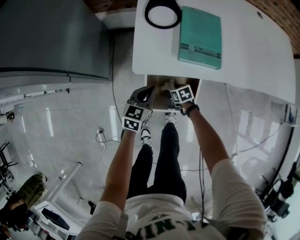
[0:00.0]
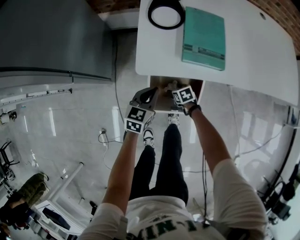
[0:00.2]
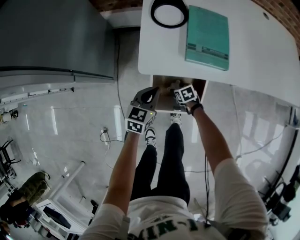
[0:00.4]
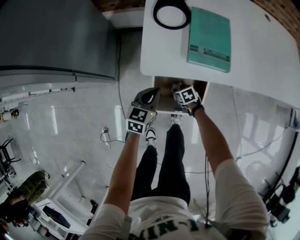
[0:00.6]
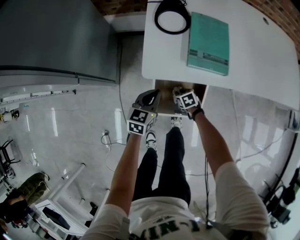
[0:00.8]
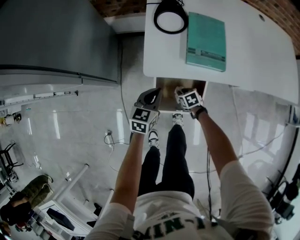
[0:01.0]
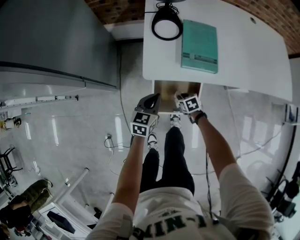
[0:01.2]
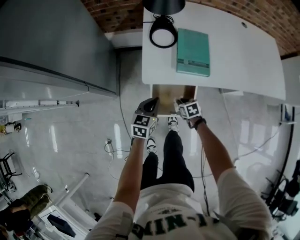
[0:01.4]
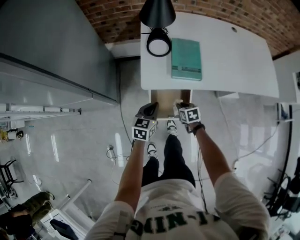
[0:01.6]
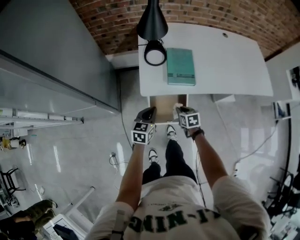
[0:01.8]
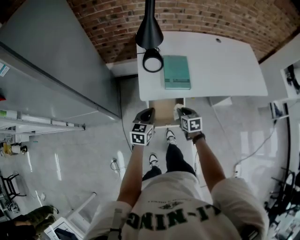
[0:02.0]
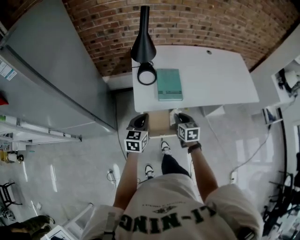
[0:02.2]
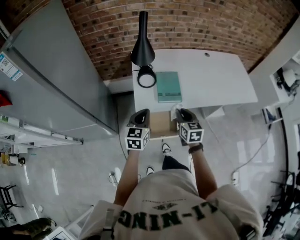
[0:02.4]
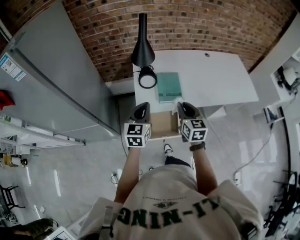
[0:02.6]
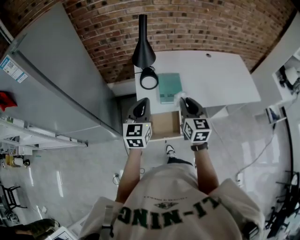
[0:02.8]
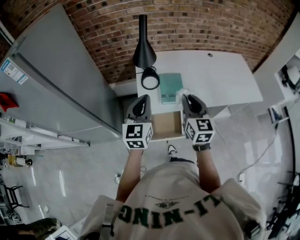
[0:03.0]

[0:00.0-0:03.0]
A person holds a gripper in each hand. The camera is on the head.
0:00.0 to 0:01.6: The left gripper travels upward by about 10 cm. Meanwhile the right gripper is displaced upward by roughly 20 cm, and closes.
0:01.6 to 0:03.0: Both grippers travel together upward, approximately 40 cm. The left gripper turns by approximately 30 degrees, while the right gripper tips its fingers upward by approximately 50 degrees.

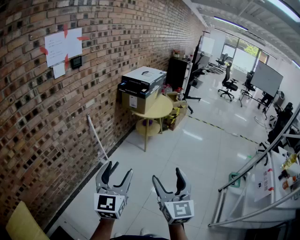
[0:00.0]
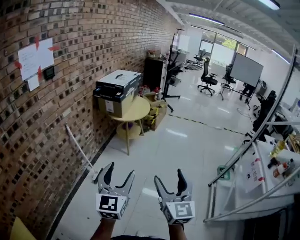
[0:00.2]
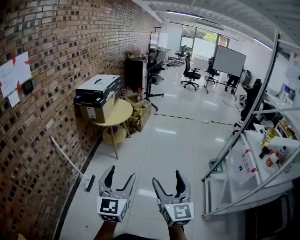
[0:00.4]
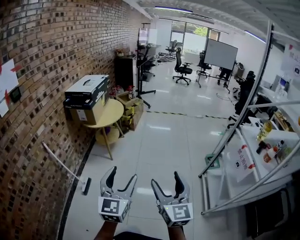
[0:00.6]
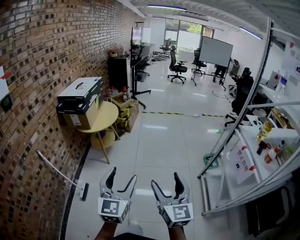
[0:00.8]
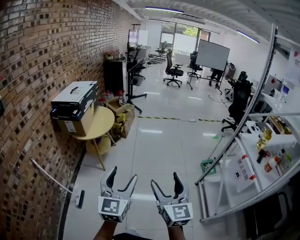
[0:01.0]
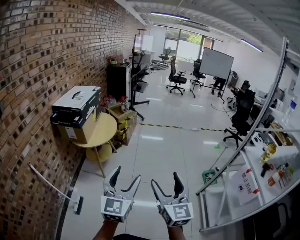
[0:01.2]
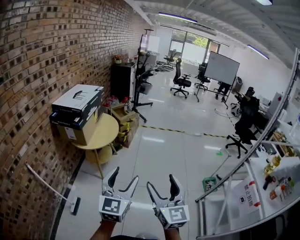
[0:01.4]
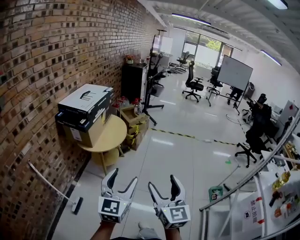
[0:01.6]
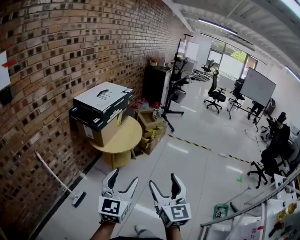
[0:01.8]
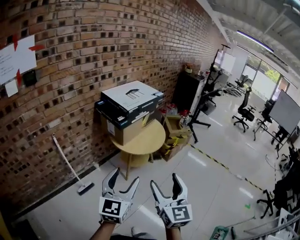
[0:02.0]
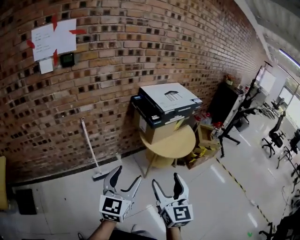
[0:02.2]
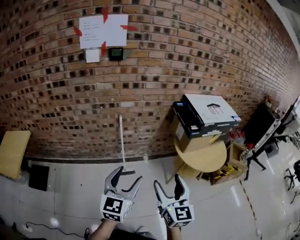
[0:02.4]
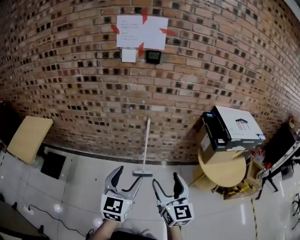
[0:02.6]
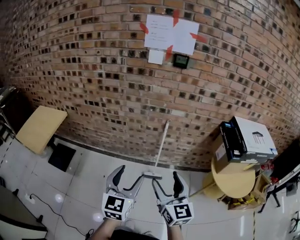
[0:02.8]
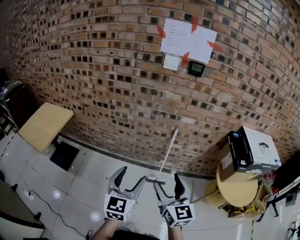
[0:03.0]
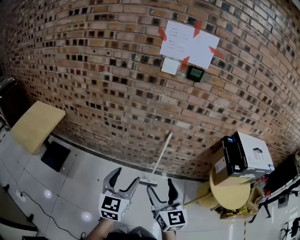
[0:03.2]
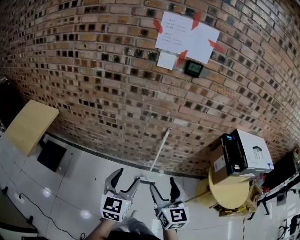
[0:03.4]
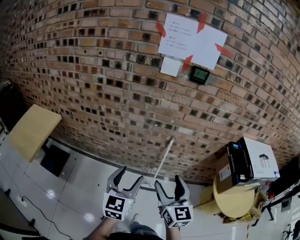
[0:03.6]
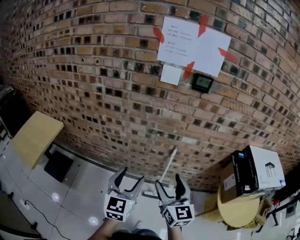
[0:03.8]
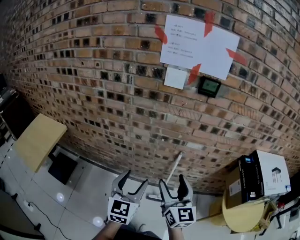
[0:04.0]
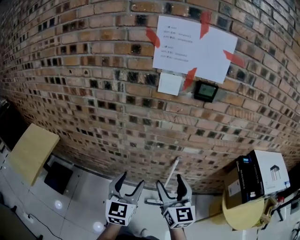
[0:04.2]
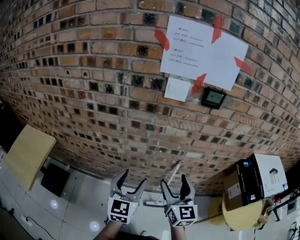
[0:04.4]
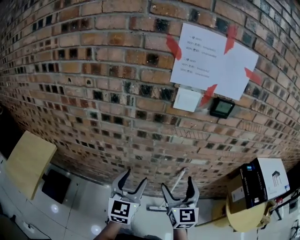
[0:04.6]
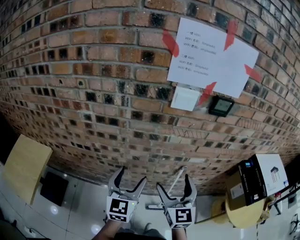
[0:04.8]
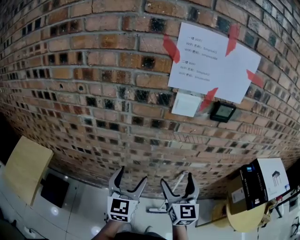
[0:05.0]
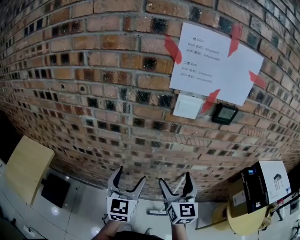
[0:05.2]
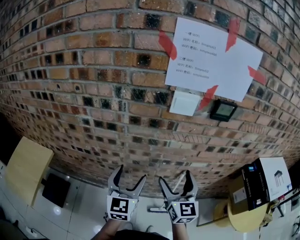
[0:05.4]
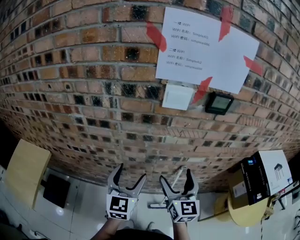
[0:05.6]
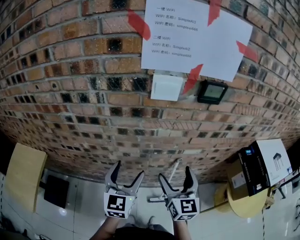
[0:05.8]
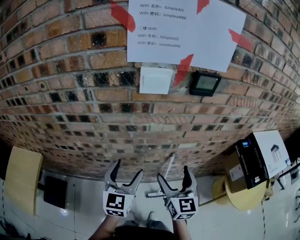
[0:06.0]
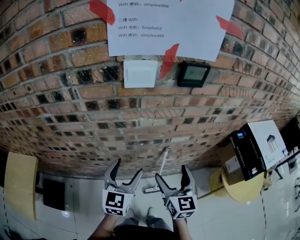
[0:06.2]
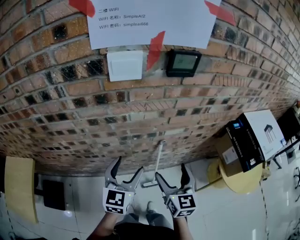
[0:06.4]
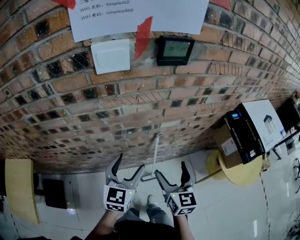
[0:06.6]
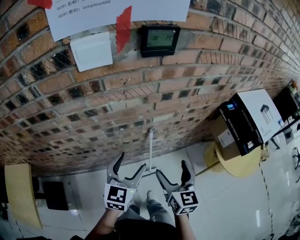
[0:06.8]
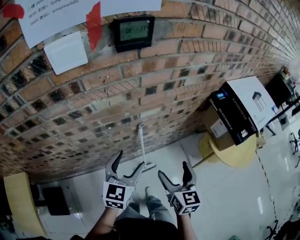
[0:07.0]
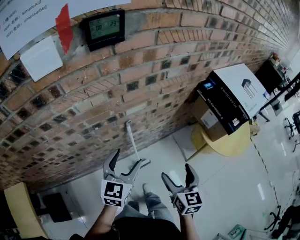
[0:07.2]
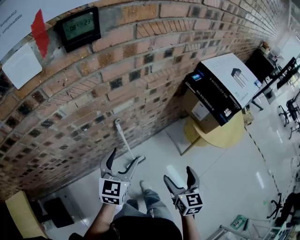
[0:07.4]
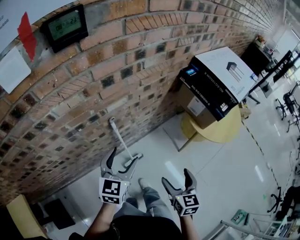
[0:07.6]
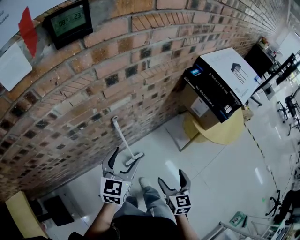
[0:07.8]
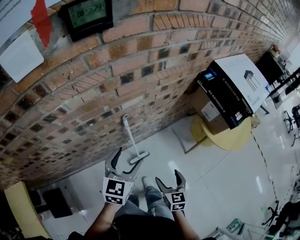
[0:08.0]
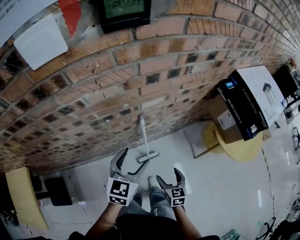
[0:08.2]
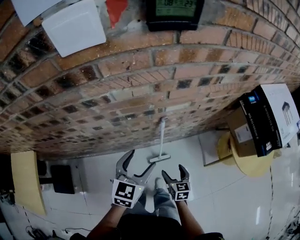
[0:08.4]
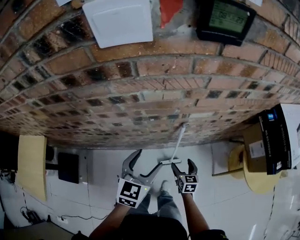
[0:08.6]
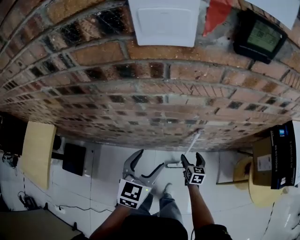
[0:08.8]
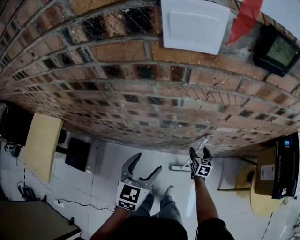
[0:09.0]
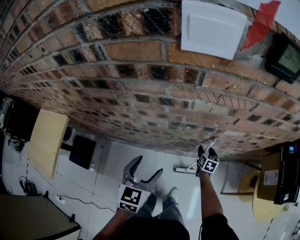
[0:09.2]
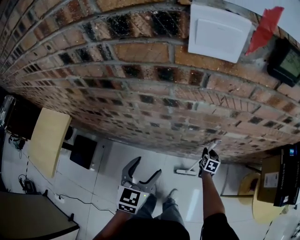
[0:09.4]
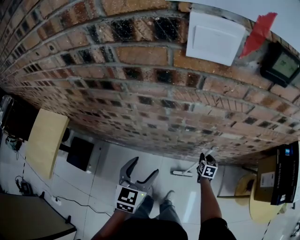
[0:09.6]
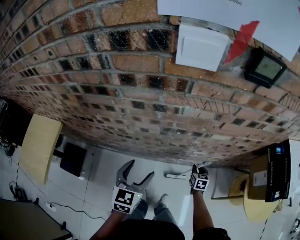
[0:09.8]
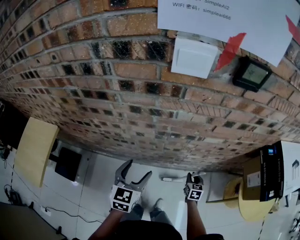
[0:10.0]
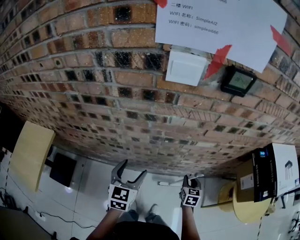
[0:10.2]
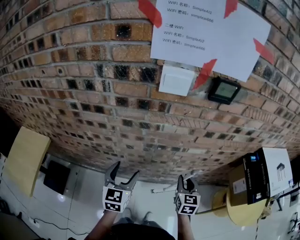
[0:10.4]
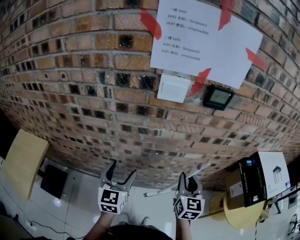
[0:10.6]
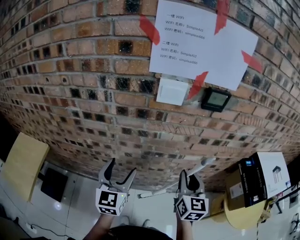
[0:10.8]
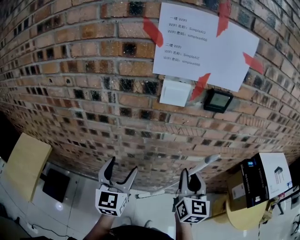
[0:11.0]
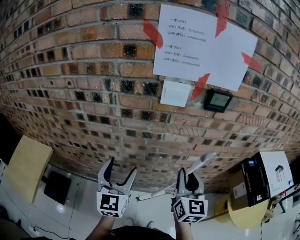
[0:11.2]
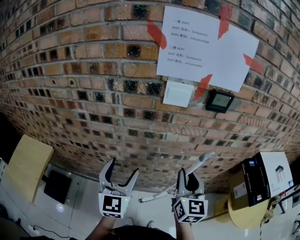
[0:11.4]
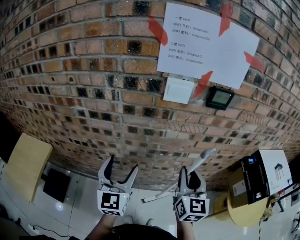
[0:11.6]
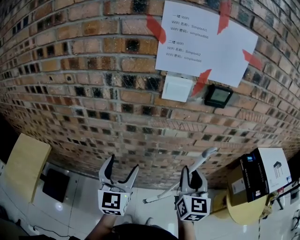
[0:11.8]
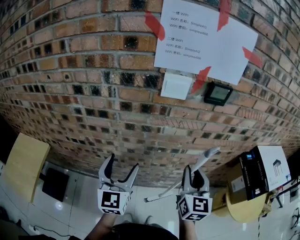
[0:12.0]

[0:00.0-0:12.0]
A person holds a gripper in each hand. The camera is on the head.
0:00.0 to 0:01.6: The two grippers travel together, forward and to the right, about 50 cm.
0:01.6 to 0:03.0: Both grippers are carried roughly 40 cm. The left gripper changes its angle by about 80 degrees; the right gripper changes its angle by some 90 degrees.
0:03.0 to 0:04.4: The two grippers go some 35 cm forward.
0:04.4 to 0:06.0: The grippers both shift forward by about 10 cm.
0:06.0 to 0:07.6: The left gripper changes place by some 25 cm, and swivels approximately 40 degrees. Meanwhile the right gripper shifts by about 35 cm, and swivels approximately 40 degrees.
0:07.6 to 0:09.0: The left gripper ends up approximately 25 cm from where it was, and changes its angle by some 40 degrees. Meanwhile the right gripper changes place by some 40 cm, and turns by approximately 30 degrees.
0:09.0 to 0:10.4: The right gripper is displaced upward and backward by about 30 cm, and closes up. The left gripper is displaced upward by some 5 cm.
0:10.4 to 0:12.0: The right gripper goes about 20 cm upward. Meanwhile the left gripper heads upward, covering approximately 15 cm.

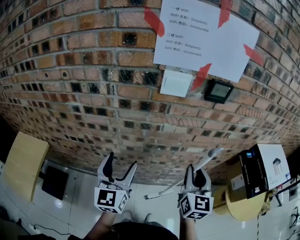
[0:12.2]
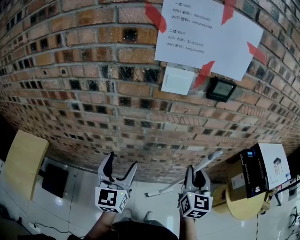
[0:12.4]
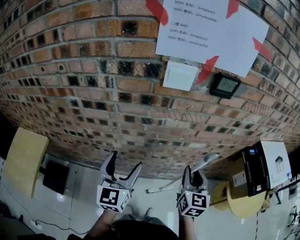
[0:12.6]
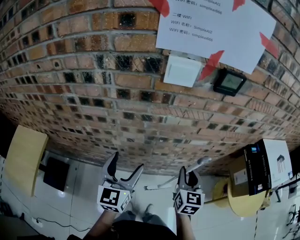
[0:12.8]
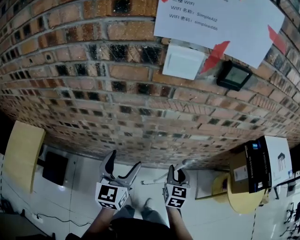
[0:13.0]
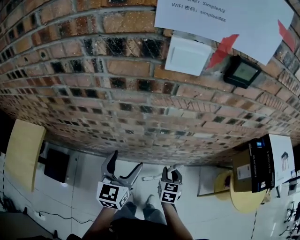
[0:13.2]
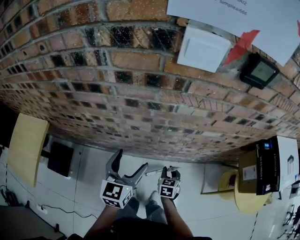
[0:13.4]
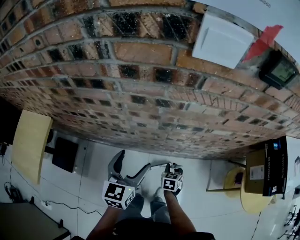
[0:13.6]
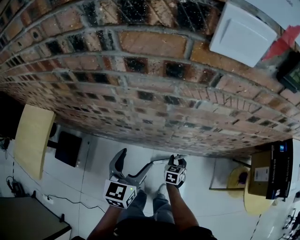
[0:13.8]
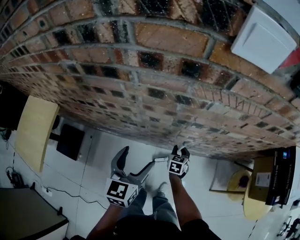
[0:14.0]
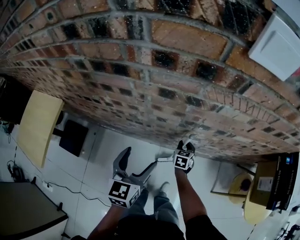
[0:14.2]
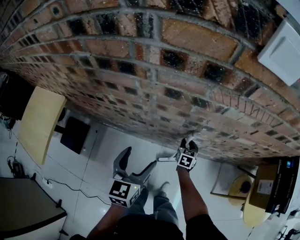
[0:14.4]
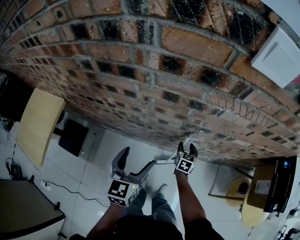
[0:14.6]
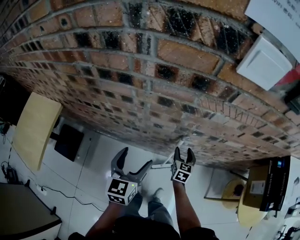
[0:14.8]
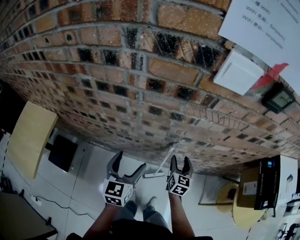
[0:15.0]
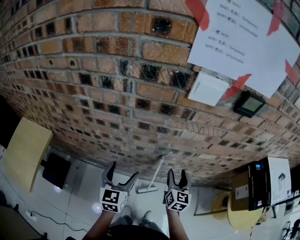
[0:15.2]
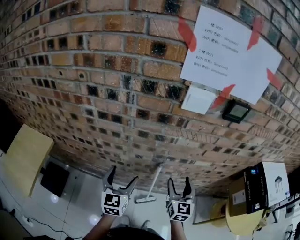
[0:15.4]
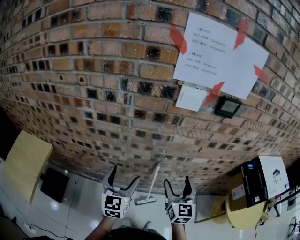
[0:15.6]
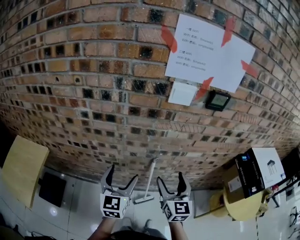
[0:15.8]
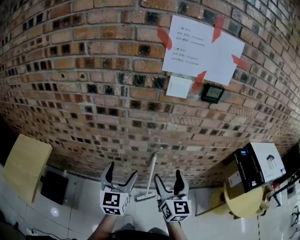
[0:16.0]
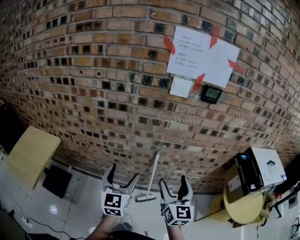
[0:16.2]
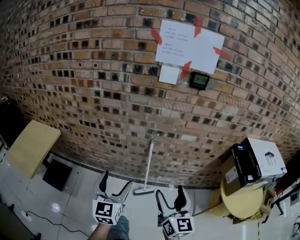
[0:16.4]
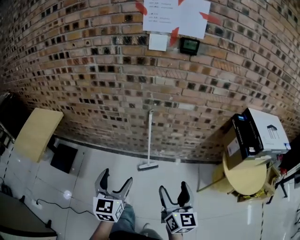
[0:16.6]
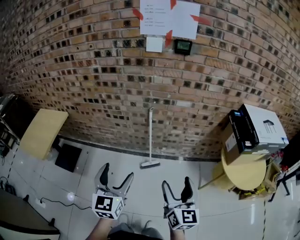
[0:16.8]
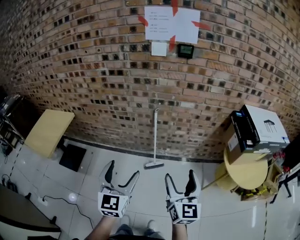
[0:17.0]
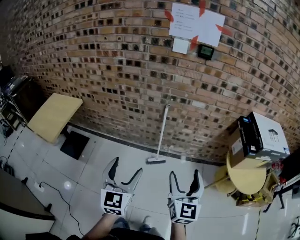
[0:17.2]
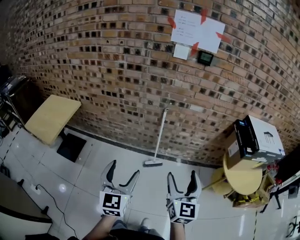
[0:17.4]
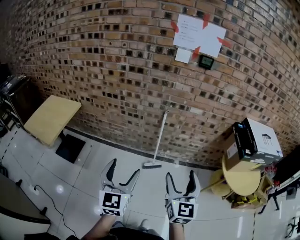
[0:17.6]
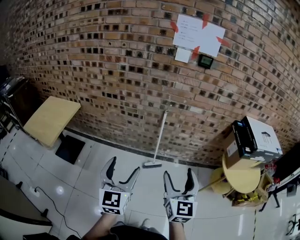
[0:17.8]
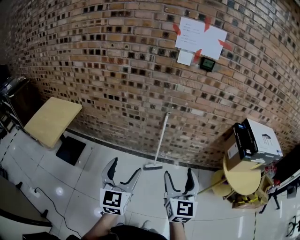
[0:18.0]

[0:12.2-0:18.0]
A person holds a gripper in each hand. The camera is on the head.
0:12.2 to 0:13.6: The right gripper moves downward, about 40 cm, and tips its fingers downward by approximately 50 degrees. Meanwhile the left gripper shifts roughly 15 cm downward, and changes its angle by about 20 degrees.
0:13.6 to 0:15.0: The left gripper goes some 5 cm to the left; the right gripper shifts approximately 15 cm upward and forward, and changes its angle by roughly 30 degrees.
0:15.0 to 0:16.6: The grippers both shift backward by some 40 cm. The right gripper swivels about 20 degrees.
0:16.6 to 0:18.0: The right gripper goes about 15 cm upward, to the left and backward. The left gripper is displaced backward, upward and to the left by about 15 cm.

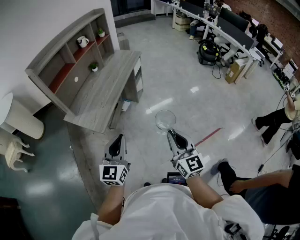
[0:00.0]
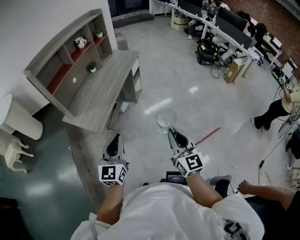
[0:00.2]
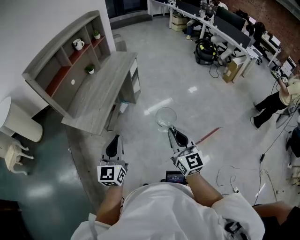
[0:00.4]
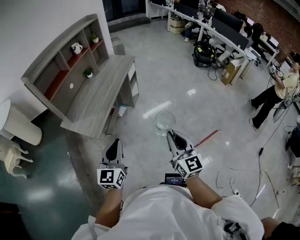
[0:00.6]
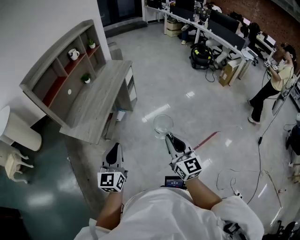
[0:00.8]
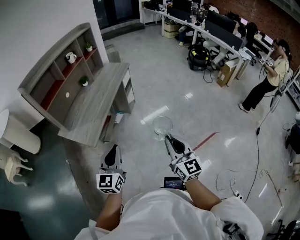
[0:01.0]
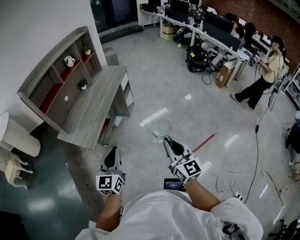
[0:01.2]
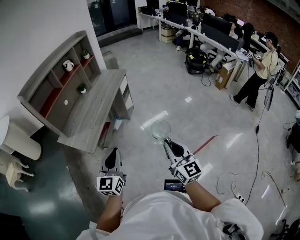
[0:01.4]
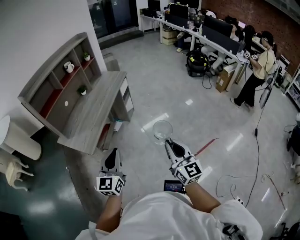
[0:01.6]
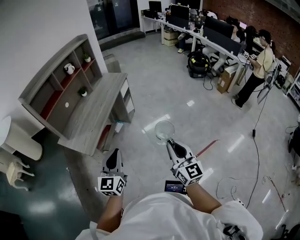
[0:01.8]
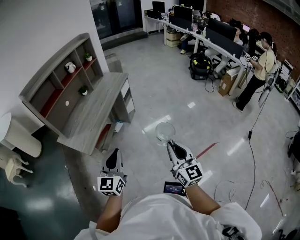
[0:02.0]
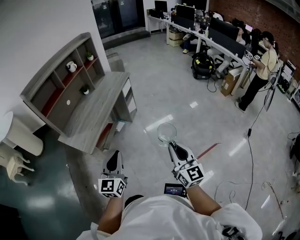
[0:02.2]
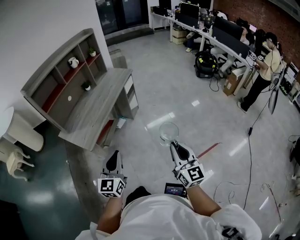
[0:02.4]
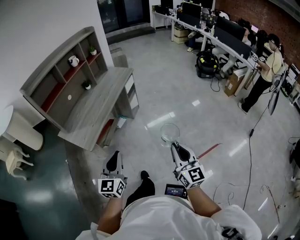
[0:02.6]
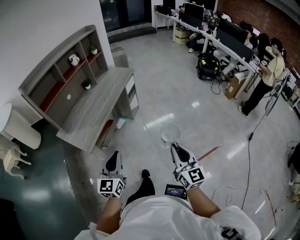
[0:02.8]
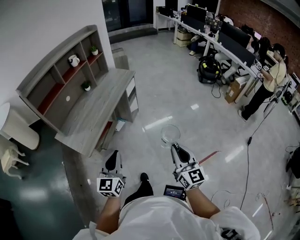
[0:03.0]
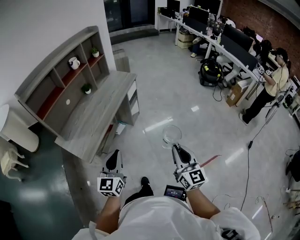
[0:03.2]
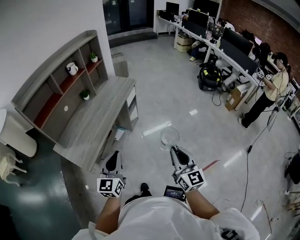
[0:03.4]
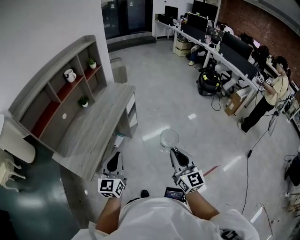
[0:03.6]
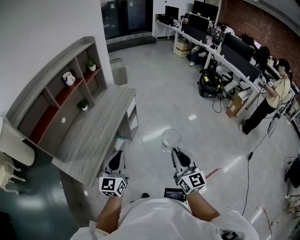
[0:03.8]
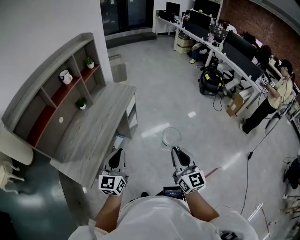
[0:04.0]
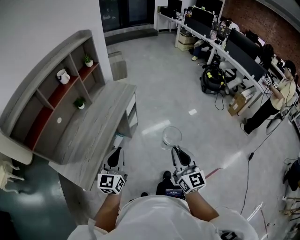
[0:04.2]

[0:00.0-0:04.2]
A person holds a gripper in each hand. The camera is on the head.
0:00.0 to 0:01.4: Both grippers move to the right, some 10 cm.
0:01.4 to 0:02.8: The right gripper travels forward and to the right by roughly 10 cm. Meanwhile the left gripper changes place by some 5 cm.
0:02.8 to 0:04.2: Both grippers travel together forward, roughly 30 cm.
